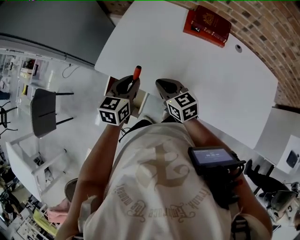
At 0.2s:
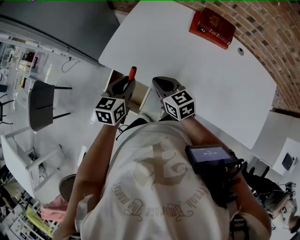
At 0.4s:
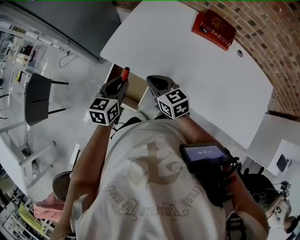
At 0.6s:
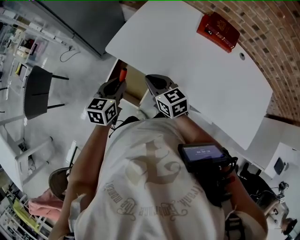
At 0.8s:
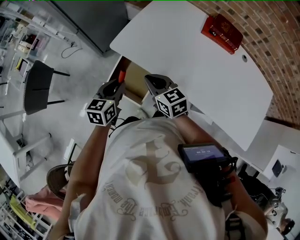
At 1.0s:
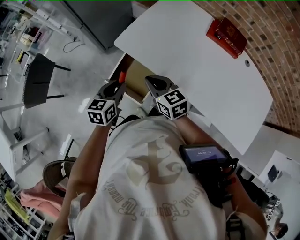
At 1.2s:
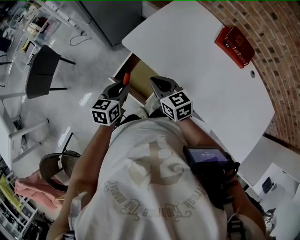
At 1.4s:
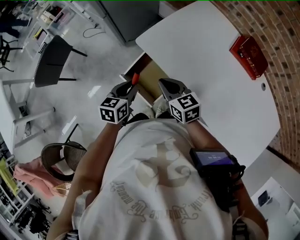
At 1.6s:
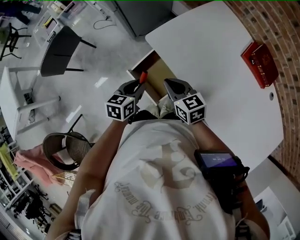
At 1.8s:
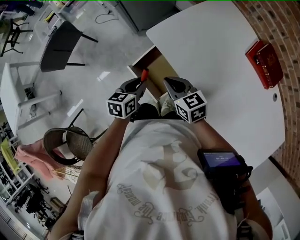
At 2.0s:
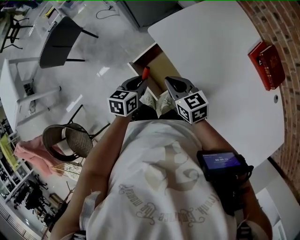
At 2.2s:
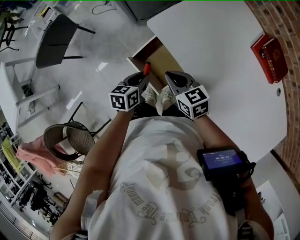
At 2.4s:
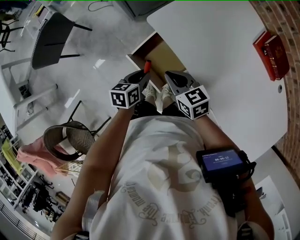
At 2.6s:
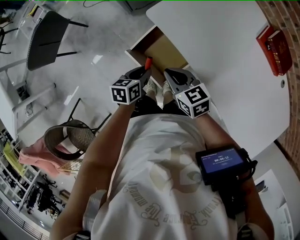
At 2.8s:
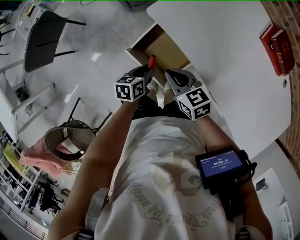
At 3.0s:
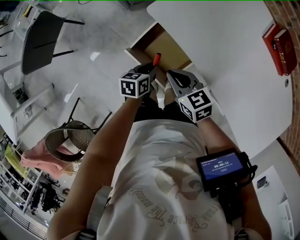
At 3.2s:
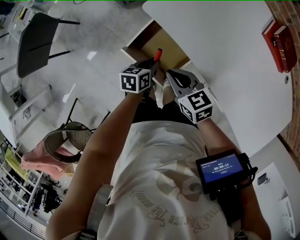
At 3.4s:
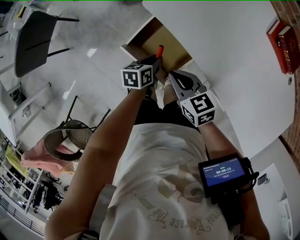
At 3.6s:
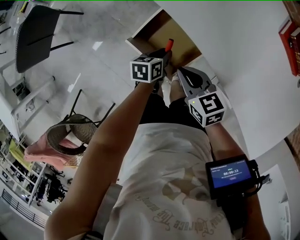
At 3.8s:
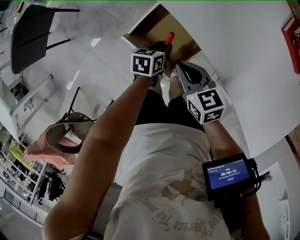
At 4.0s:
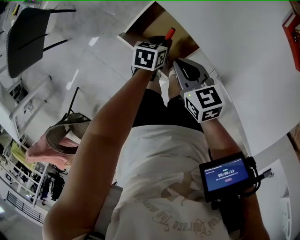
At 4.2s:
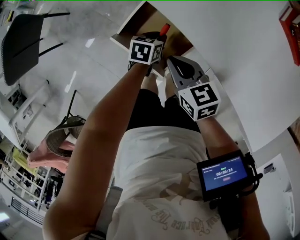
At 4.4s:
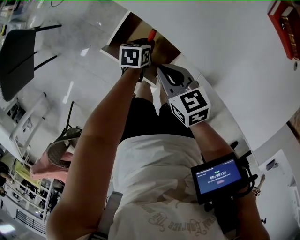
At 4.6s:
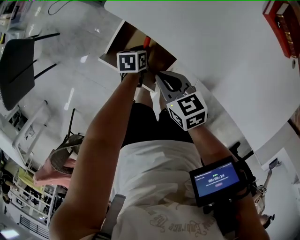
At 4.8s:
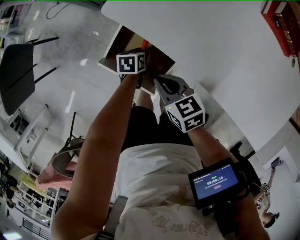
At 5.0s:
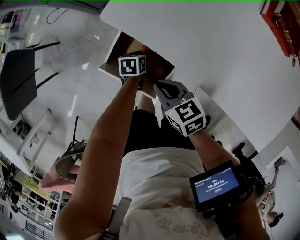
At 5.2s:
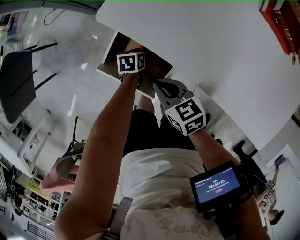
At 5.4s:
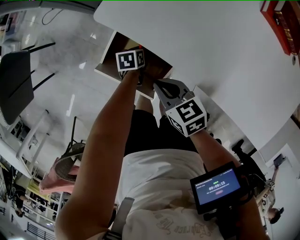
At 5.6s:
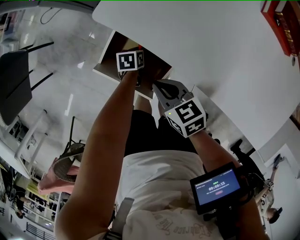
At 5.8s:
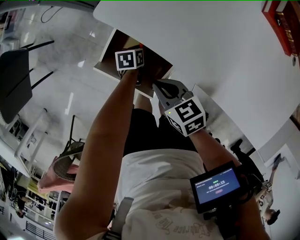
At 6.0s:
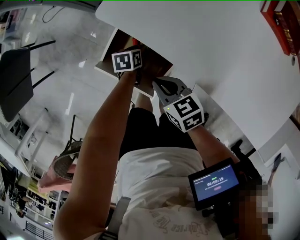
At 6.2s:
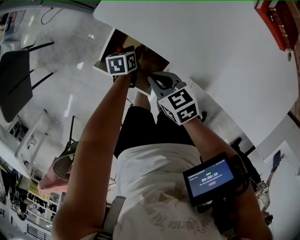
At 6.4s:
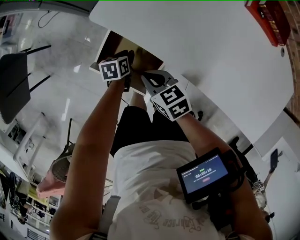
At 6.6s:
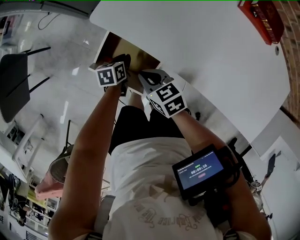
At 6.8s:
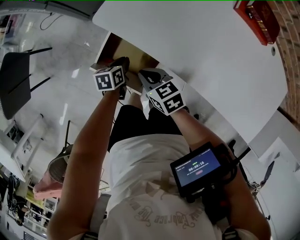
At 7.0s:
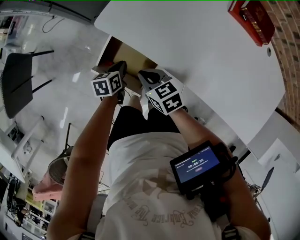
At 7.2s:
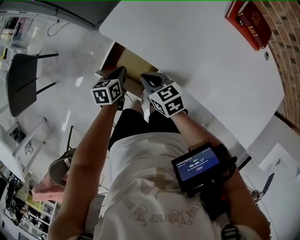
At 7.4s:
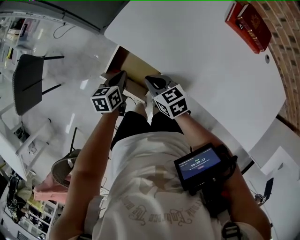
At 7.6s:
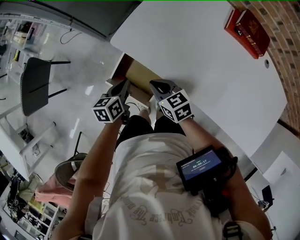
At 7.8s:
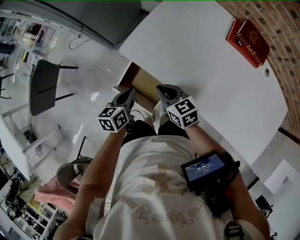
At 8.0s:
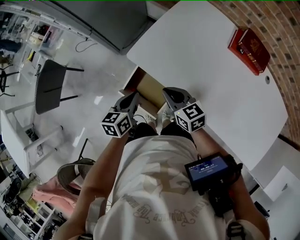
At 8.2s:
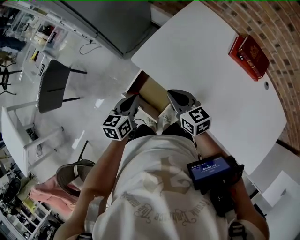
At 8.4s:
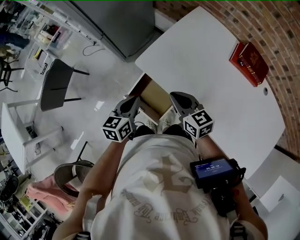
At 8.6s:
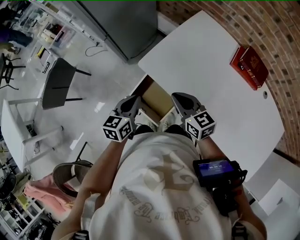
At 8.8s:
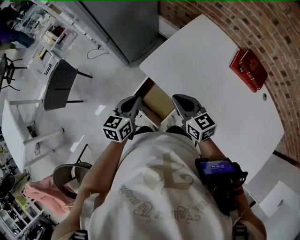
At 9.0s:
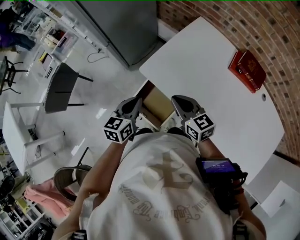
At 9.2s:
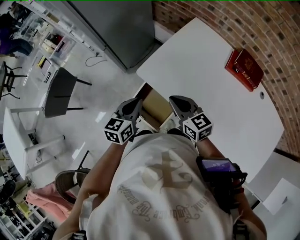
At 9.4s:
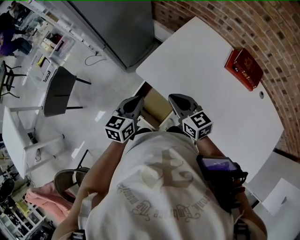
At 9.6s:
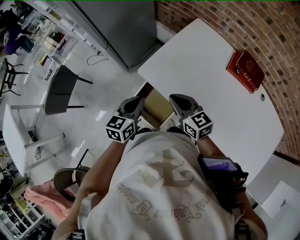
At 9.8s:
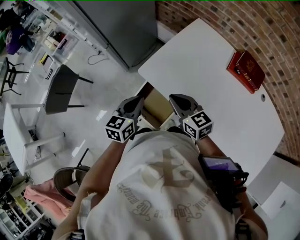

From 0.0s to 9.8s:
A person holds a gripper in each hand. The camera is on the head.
From 0.0s to 1.4s: The two grippers go approximately 15 cm to the left. The right gripper rotates some 20 degrees. The left gripper swivels some 20 degrees.
From 1.4s to 2.8s: The right gripper shifts roughly 10 cm downward and to the left; the left gripper moves downward, approximately 15 cm, and turns by about 20 degrees.
From 2.8s to 4.2s: The left gripper moves downward, forward and to the right, some 15 cm. Meanwhile the right gripper heads downward, covering some 5 cm.
From 4.2s to 5.6s: The left gripper shifts some 10 cm downward.
From 5.6s to 7.0s: The left gripper goes some 15 cm upward.
From 7.0s to 8.4s: The two grippers go roughly 20 cm upward. The right gripper rotates some 20 degrees. The left gripper rotates approximately 30 degrees.
From 8.4s to 9.8s: The left gripper shifts by approximately 5 cm.

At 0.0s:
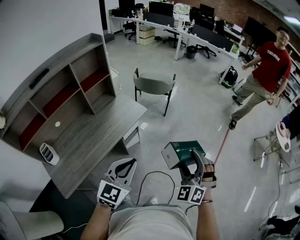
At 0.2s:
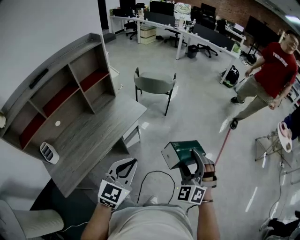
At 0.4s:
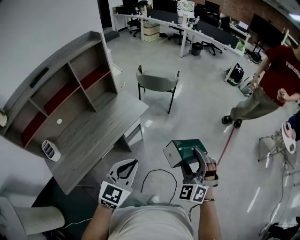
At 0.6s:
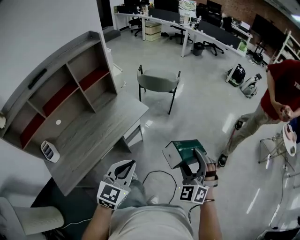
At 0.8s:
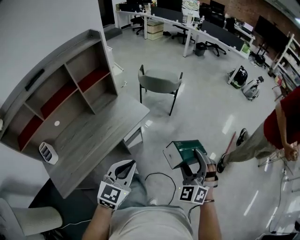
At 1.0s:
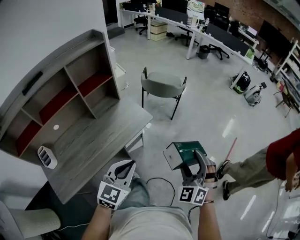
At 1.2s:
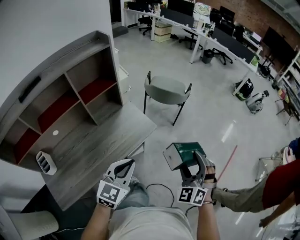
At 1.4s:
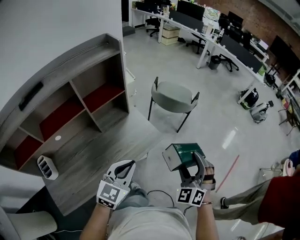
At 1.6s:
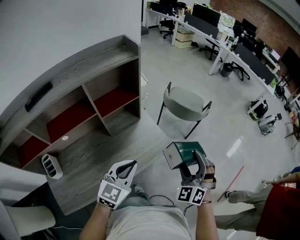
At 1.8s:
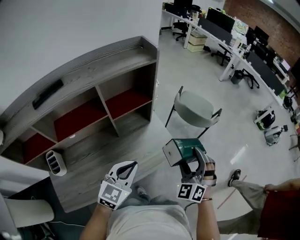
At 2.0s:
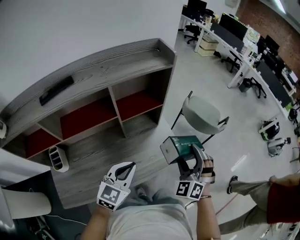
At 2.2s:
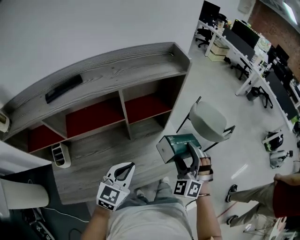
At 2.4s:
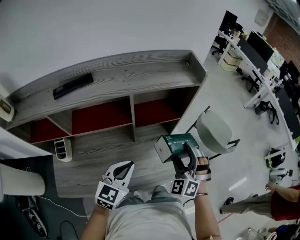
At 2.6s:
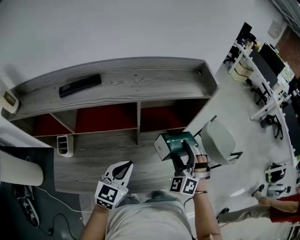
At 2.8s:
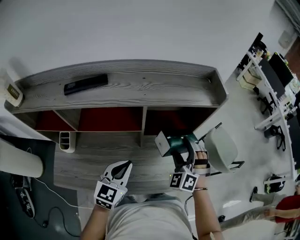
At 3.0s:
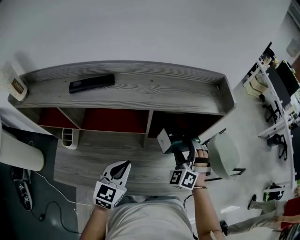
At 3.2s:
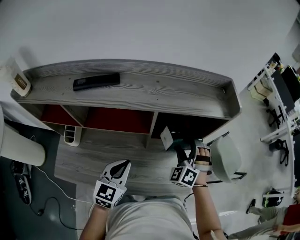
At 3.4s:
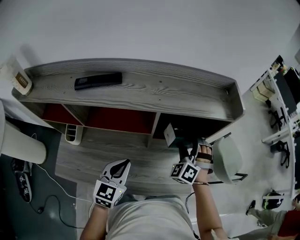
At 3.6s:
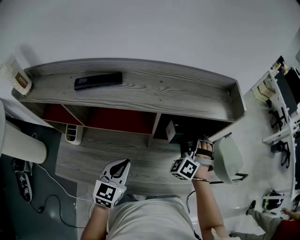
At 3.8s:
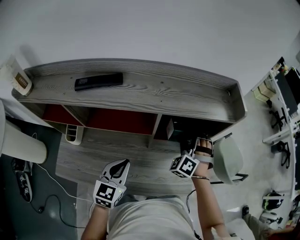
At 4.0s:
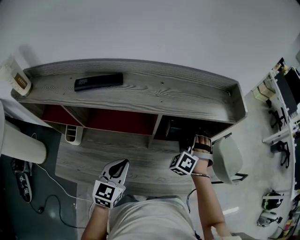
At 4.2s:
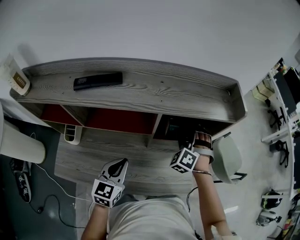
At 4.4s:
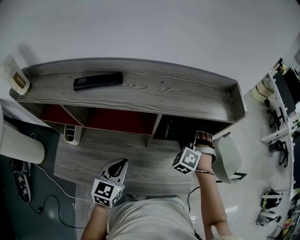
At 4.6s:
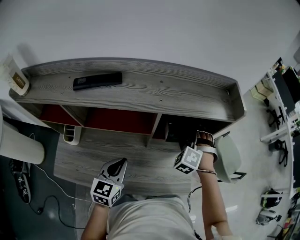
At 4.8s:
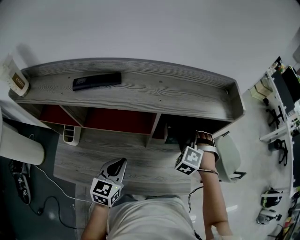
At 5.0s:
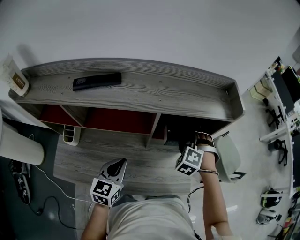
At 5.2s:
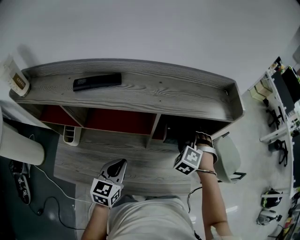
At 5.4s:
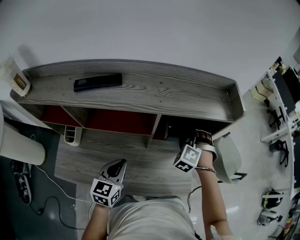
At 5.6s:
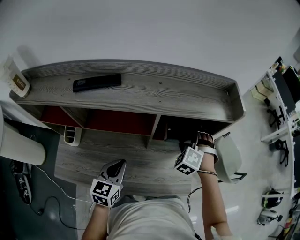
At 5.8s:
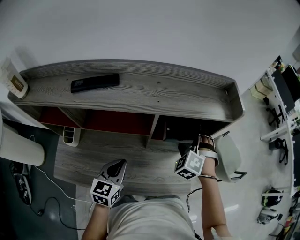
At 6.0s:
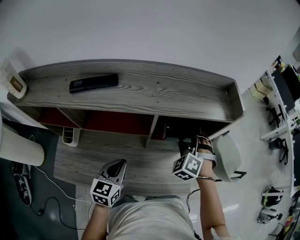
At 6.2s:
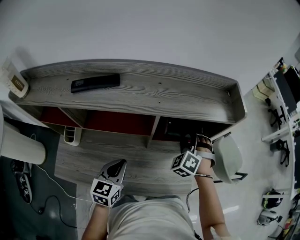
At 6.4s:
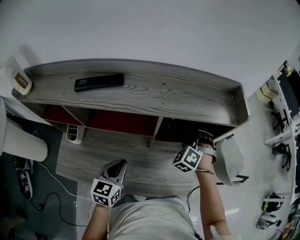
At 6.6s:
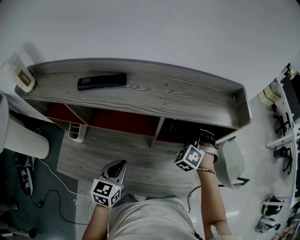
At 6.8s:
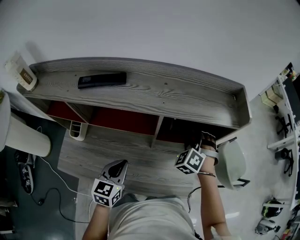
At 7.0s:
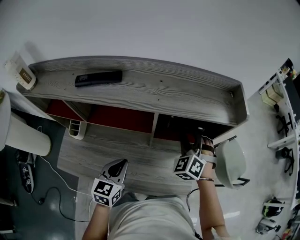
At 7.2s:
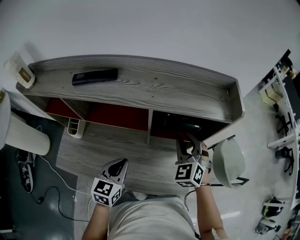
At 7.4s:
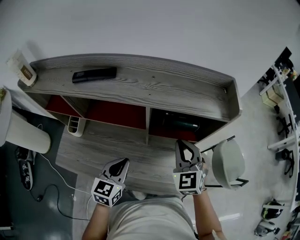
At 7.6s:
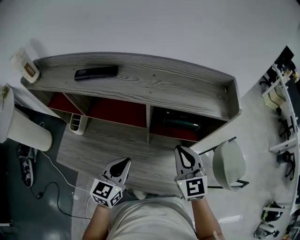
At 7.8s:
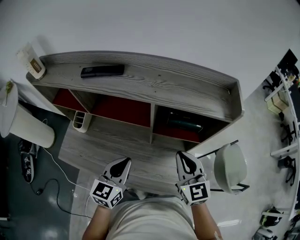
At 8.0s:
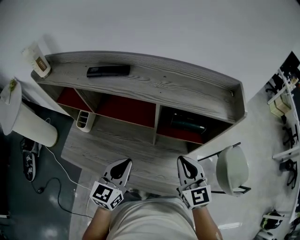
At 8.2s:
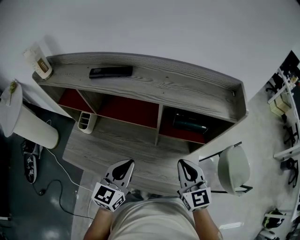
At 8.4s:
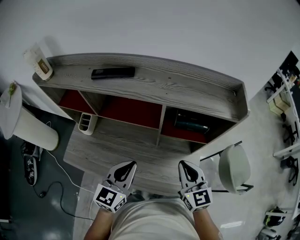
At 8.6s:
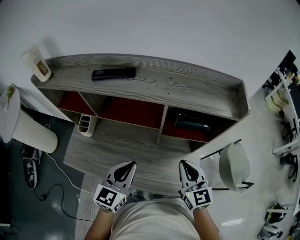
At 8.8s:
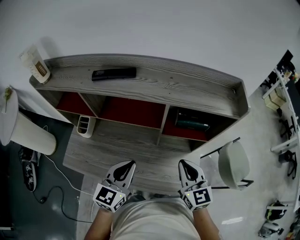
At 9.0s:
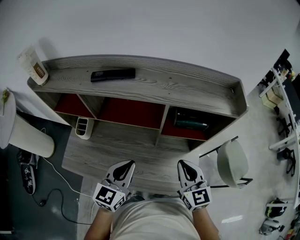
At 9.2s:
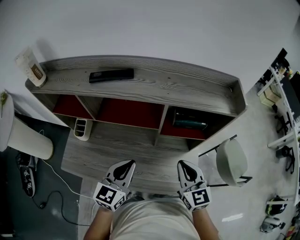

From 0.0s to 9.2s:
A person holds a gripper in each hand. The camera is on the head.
From 0.0s to 1.6s: Both grippers travel together forward and to the left, approximately 35 cm.
From 1.6s to 3.0s: The left gripper ends up roughly 20 cm from where it was, and turns by about 40 degrees, while the right gripper shifts by some 40 cm, and turns by roughly 40 degrees.
From 3.0s to 4.6s: The right gripper goes roughly 5 cm forward, and swivels approximately 20 degrees.
From 4.6s to 6.2s: The right gripper closes up.
From 6.2s to 7.6s: The right gripper heads backward and upward, covering roughly 10 cm, swivels approximately 60 degrees, and closes. The left gripper travels to the right by roughly 5 cm.
From 7.6s to 9.2s: The left gripper changes place by some 5 cm, while the right gripper moves backward, roughly 5 cm.

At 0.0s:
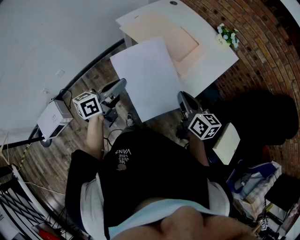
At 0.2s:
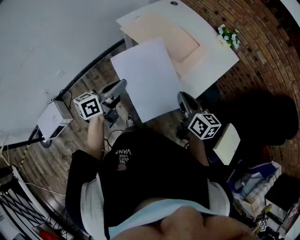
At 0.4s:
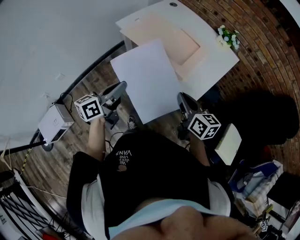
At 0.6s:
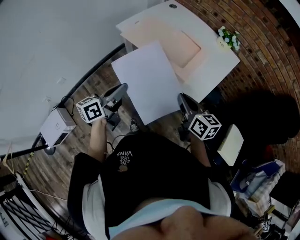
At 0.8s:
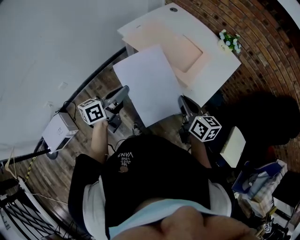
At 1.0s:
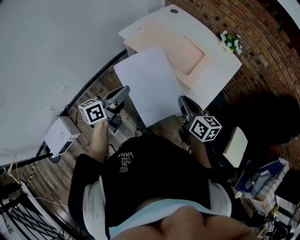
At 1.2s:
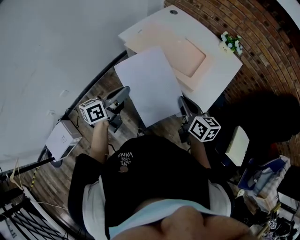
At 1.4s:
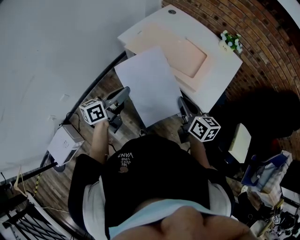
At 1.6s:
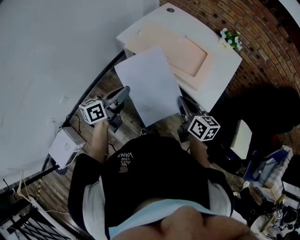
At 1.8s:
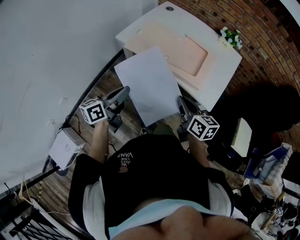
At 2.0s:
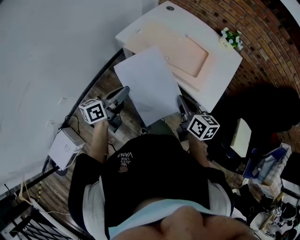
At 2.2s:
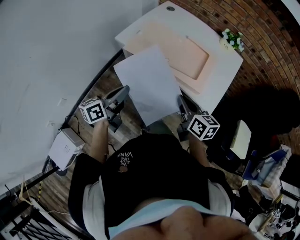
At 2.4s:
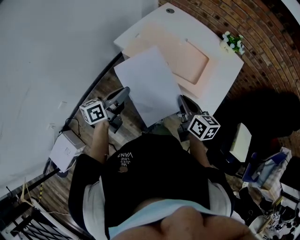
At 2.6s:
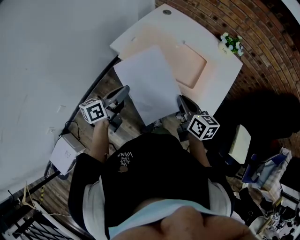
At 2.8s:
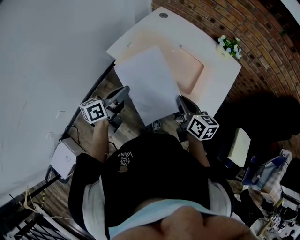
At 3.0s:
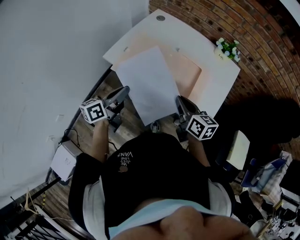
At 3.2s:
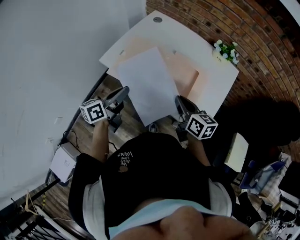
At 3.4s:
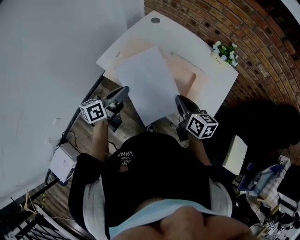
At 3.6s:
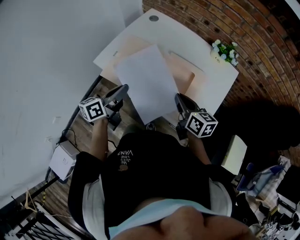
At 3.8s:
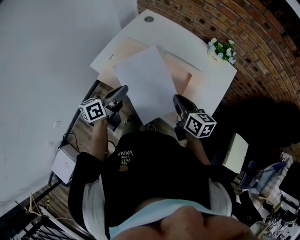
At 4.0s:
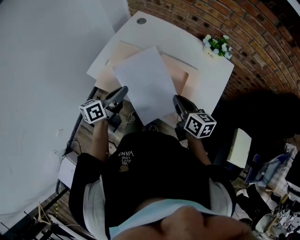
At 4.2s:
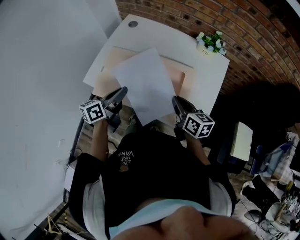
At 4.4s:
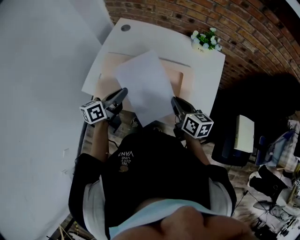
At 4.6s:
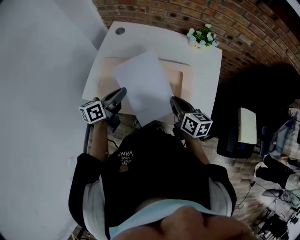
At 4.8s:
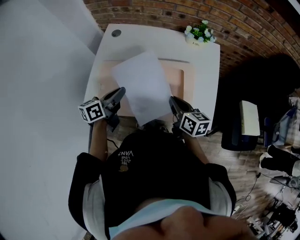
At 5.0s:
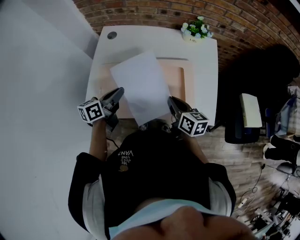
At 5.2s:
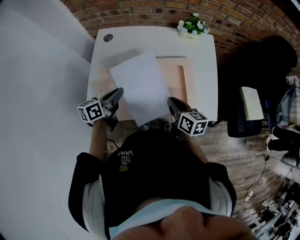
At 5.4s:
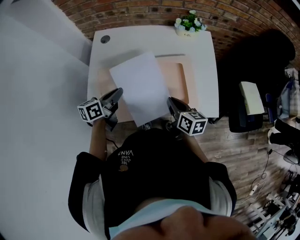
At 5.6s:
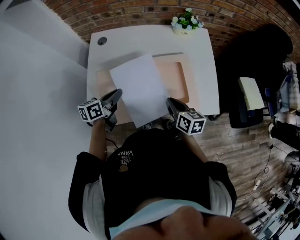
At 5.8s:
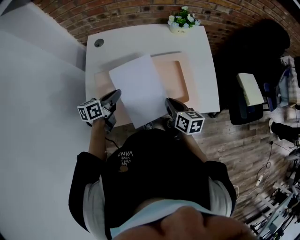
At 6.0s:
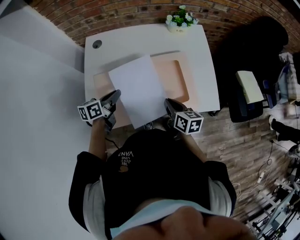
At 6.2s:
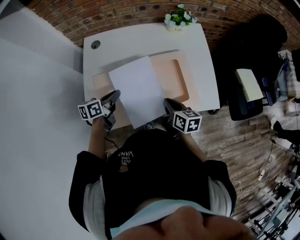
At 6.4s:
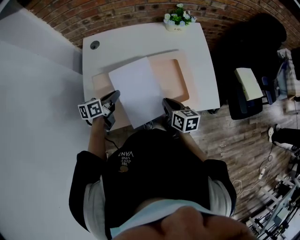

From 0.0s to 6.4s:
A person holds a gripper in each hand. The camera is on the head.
From 0.0s to 1.6s: Both grippers move to the left and forward, about 15 cm.
From 1.6s to 3.2s: Both grippers travel together forward, approximately 20 cm.
From 3.2s to 4.8s: The right gripper shifts roughly 5 cm forward, and swivels some 20 degrees; the left gripper shifts approximately 15 cm forward, and changes its angle by roughly 30 degrees.
From 4.8s to 6.4s: The right gripper heads downward, covering about 5 cm; the left gripper shifts approximately 10 cm downward and to the left, and changes its angle by some 20 degrees.
